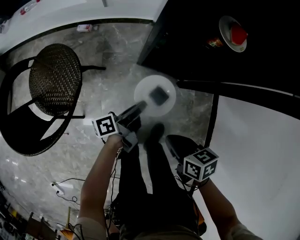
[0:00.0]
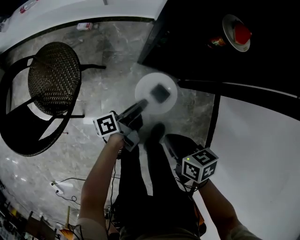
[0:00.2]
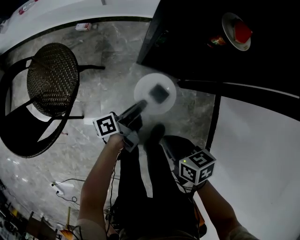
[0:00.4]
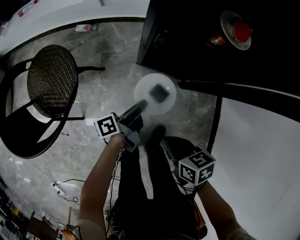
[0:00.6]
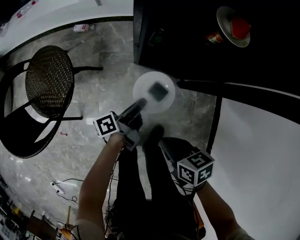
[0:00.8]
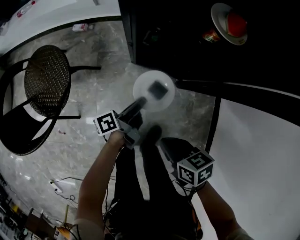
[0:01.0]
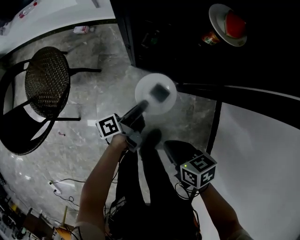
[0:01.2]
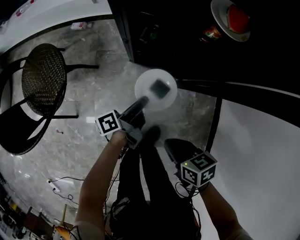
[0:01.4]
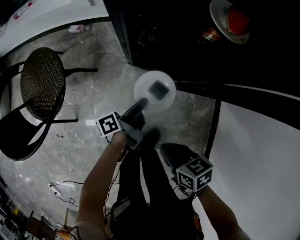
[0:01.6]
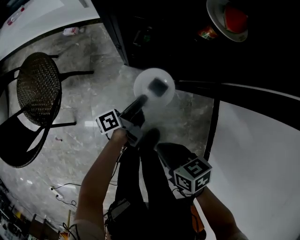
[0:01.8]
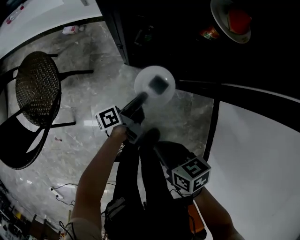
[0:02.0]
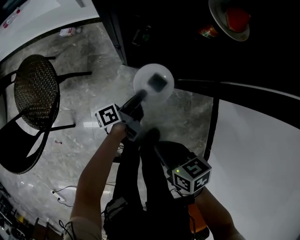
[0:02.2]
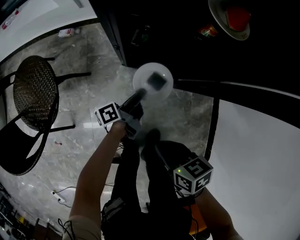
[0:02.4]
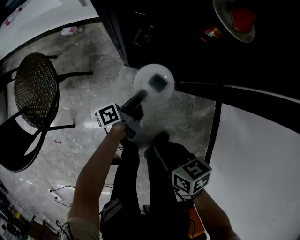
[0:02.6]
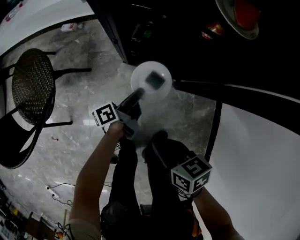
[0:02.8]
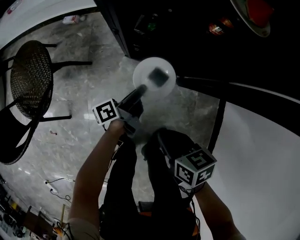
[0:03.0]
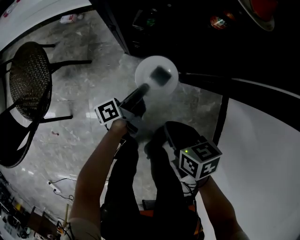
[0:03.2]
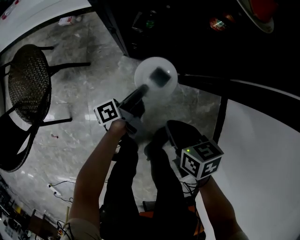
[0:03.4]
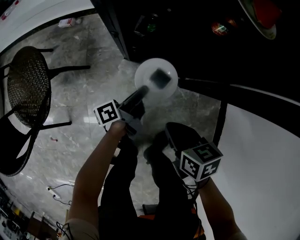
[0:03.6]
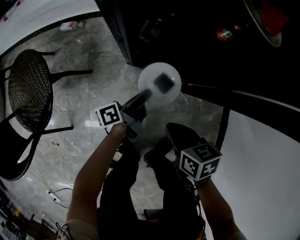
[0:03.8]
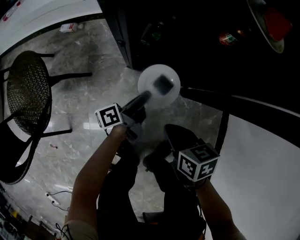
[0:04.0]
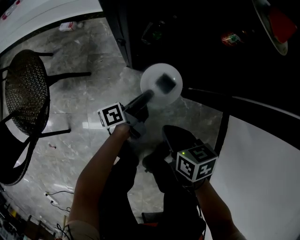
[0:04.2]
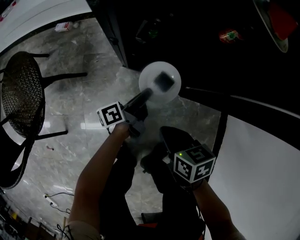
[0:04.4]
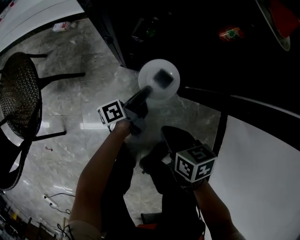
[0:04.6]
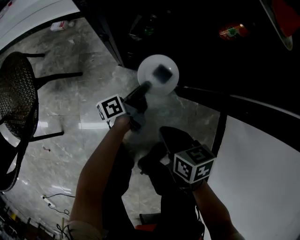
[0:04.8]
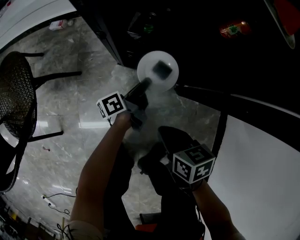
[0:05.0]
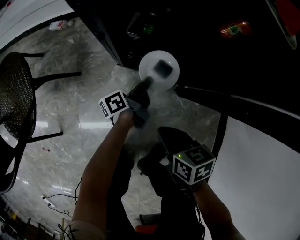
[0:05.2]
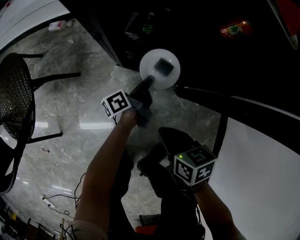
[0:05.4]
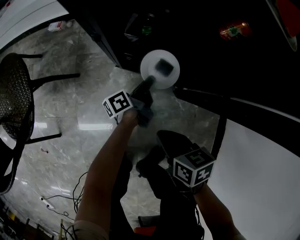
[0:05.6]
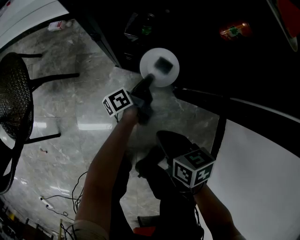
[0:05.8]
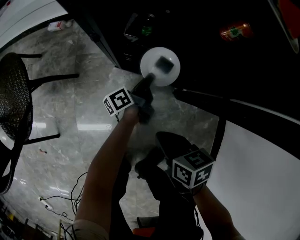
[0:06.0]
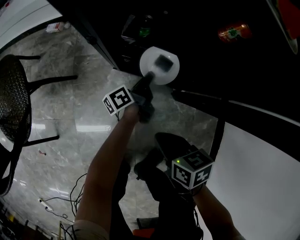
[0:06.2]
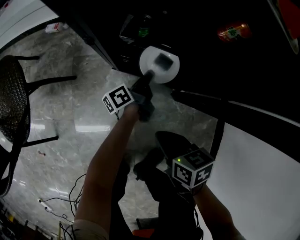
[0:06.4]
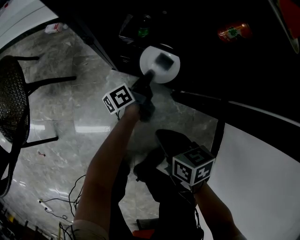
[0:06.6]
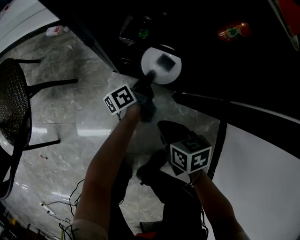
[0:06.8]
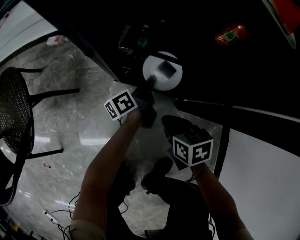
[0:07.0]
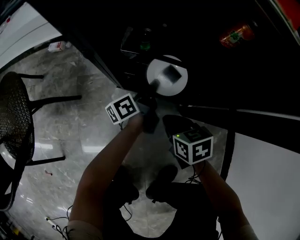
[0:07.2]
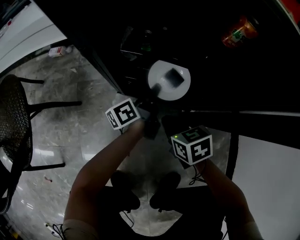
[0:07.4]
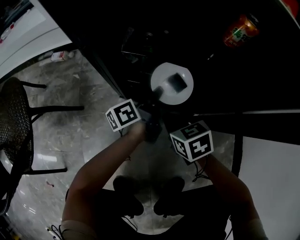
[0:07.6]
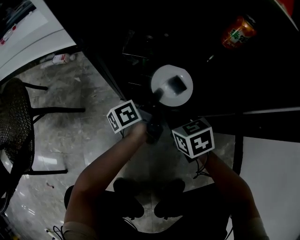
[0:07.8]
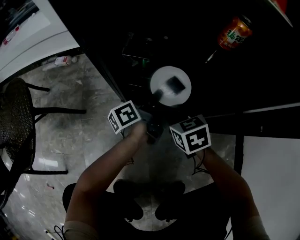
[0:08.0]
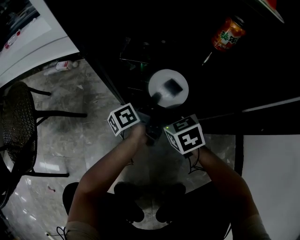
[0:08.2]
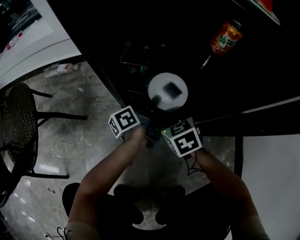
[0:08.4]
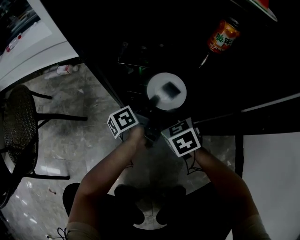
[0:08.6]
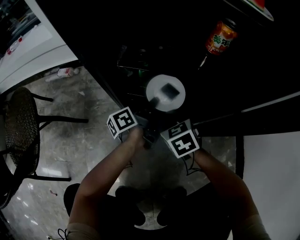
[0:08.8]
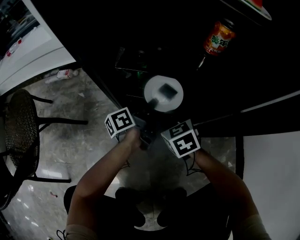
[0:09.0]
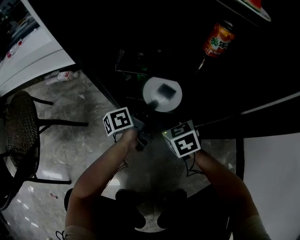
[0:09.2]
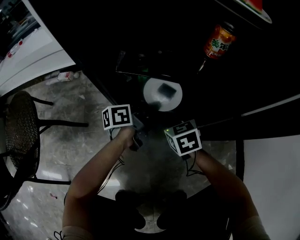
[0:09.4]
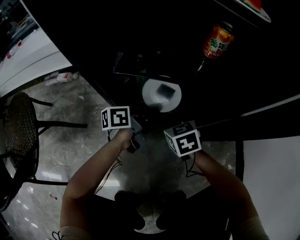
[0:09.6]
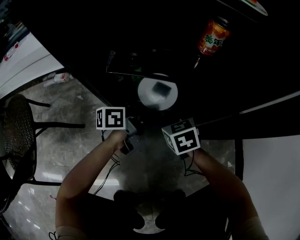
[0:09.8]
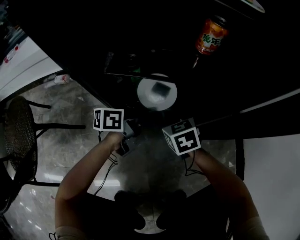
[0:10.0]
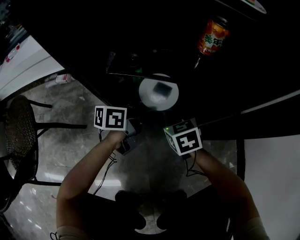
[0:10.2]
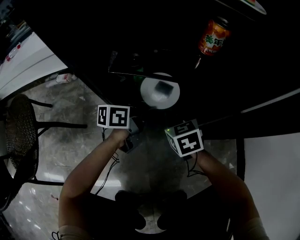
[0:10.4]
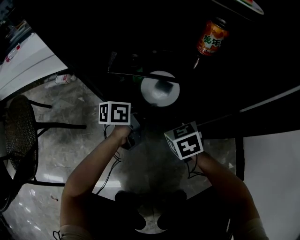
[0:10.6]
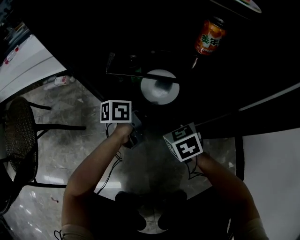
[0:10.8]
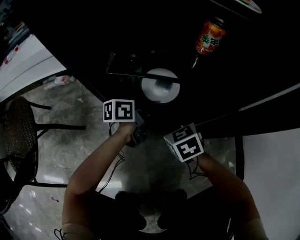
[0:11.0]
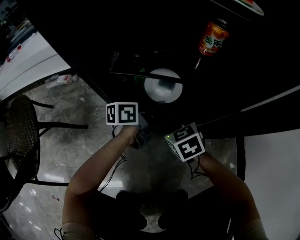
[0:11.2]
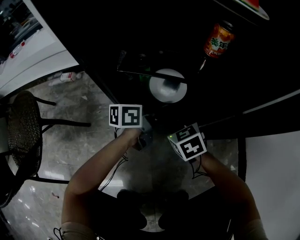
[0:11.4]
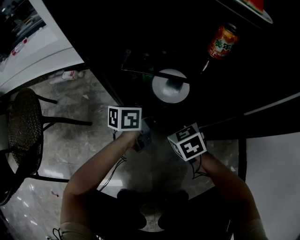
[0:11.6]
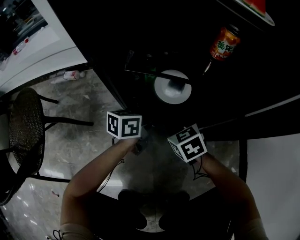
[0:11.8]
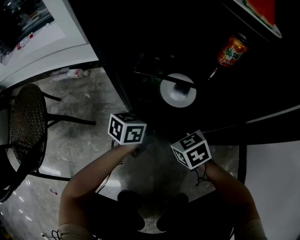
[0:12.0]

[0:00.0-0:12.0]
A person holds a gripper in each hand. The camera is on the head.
0:00.0 to 0:01.6: The right gripper moves downward, roughly 5 cm. Meanwhile the left gripper shifts approximately 10 cm to the right and downward.
0:01.6 to 0:03.0: The left gripper moves downward, about 5 cm, while the right gripper goes about 5 cm downward and forward.
0:03.0 to 0:04.4: The right gripper heads downward and forward, covering approximately 10 cm. The left gripper moves downward, some 5 cm.
0:04.4 to 0:06.0: The left gripper moves downward and forward, approximately 10 cm.
0:06.0 to 0:07.6: The right gripper shifts some 15 cm forward and downward, and turns by roughly 20 degrees.
0:07.6 to 0:09.0: There are only small adjustments of the grippers.
0:09.0 to 0:10.4: The left gripper changes its angle by about 40 degrees.
0:10.4 to 0:12.0: The left gripper swivels some 20 degrees; the right gripper travels backward by some 5 cm.

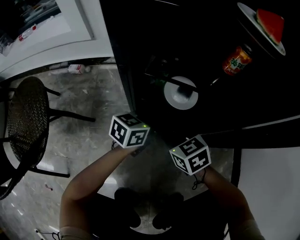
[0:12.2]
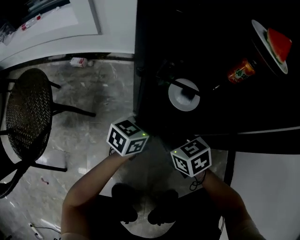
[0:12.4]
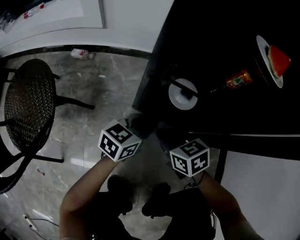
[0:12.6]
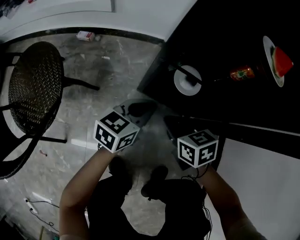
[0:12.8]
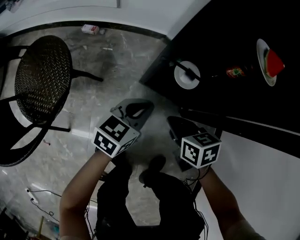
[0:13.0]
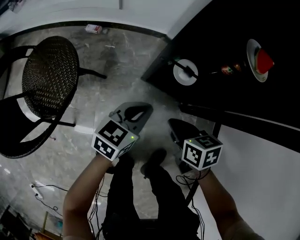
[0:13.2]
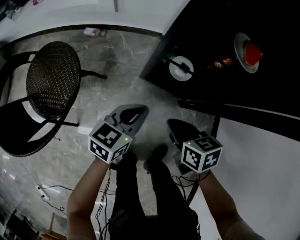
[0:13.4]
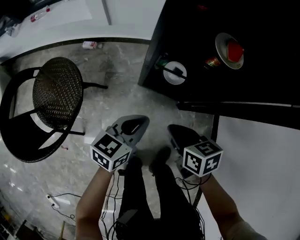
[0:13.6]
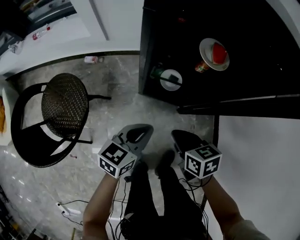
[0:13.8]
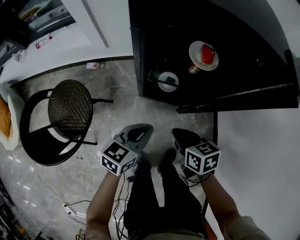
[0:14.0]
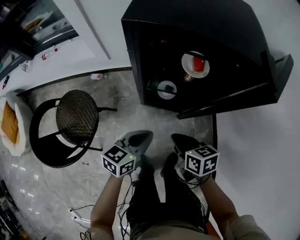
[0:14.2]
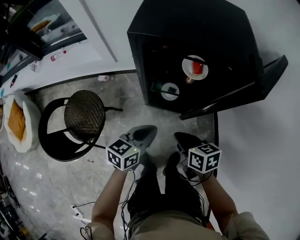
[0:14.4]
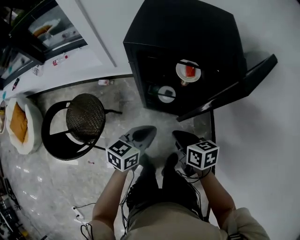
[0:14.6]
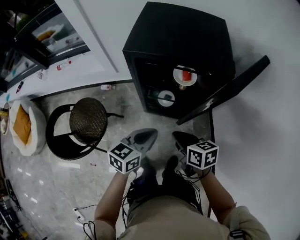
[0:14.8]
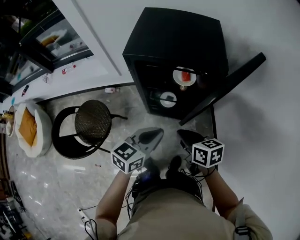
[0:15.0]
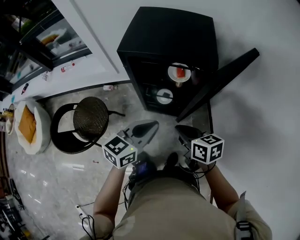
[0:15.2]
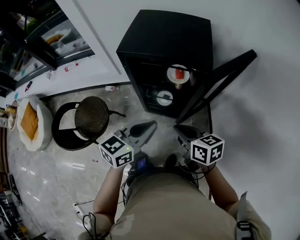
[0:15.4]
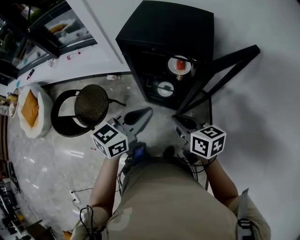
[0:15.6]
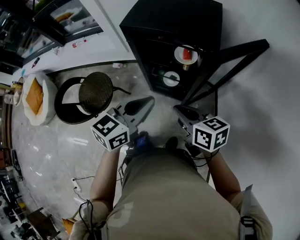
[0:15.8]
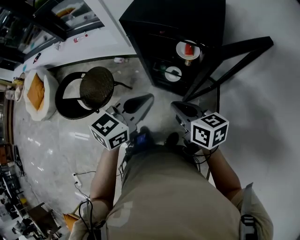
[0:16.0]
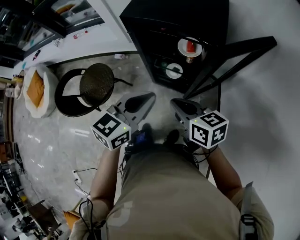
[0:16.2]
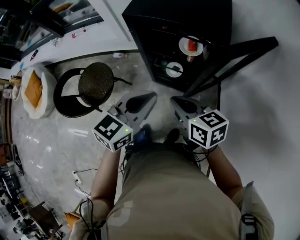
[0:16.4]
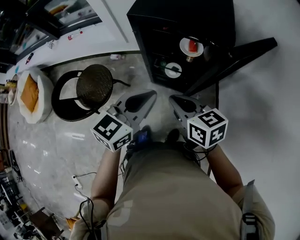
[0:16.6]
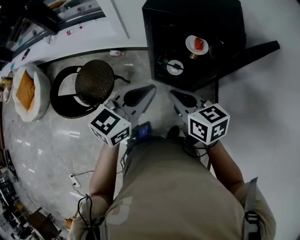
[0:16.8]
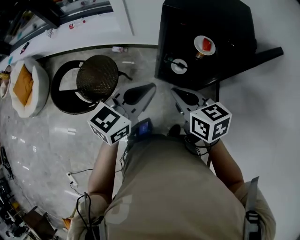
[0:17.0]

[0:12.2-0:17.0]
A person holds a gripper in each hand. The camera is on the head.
0:12.2 to 0:13.8: The left gripper goes roughly 35 cm upward and backward; the right gripper moves upward, roughly 30 cm, and rotates about 20 degrees.
0:13.8 to 0:15.4: Both grippers move upward, roughly 30 cm.
0:15.4 to 0:17.0: Both grippers move to the left, some 15 cm.

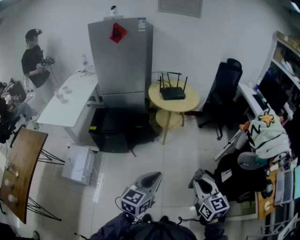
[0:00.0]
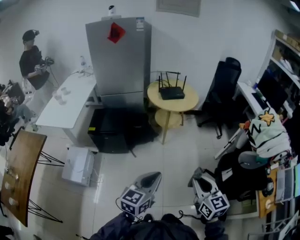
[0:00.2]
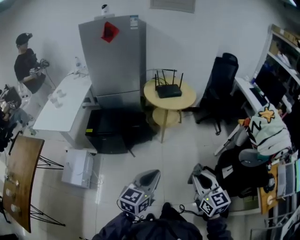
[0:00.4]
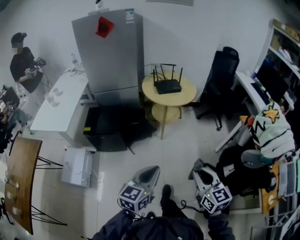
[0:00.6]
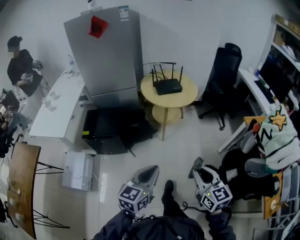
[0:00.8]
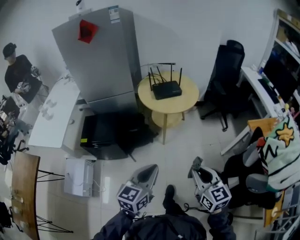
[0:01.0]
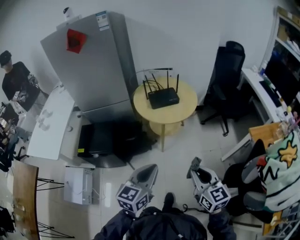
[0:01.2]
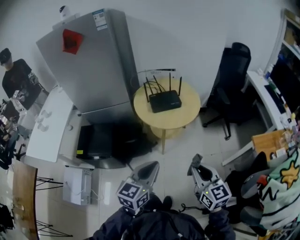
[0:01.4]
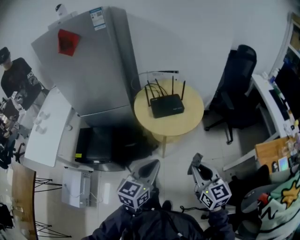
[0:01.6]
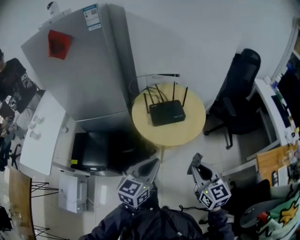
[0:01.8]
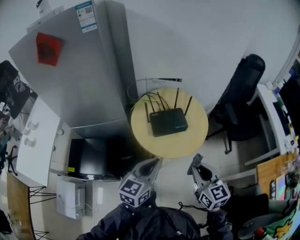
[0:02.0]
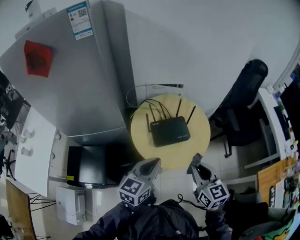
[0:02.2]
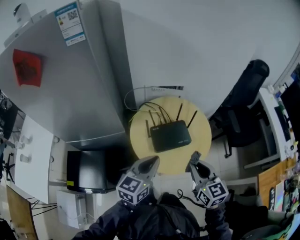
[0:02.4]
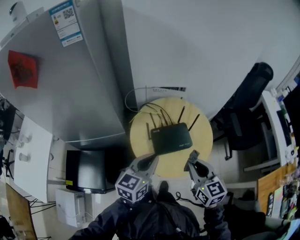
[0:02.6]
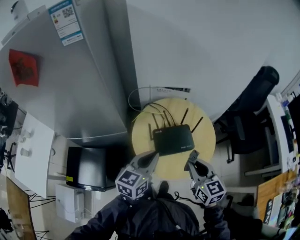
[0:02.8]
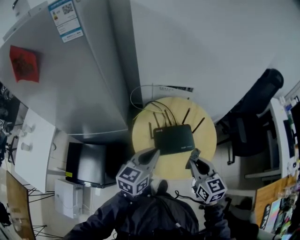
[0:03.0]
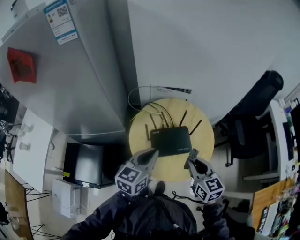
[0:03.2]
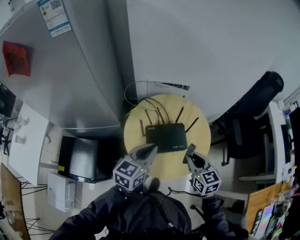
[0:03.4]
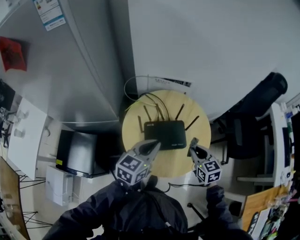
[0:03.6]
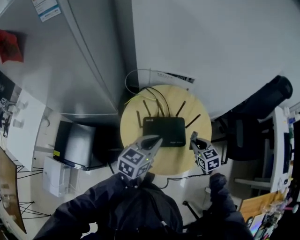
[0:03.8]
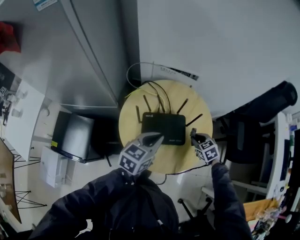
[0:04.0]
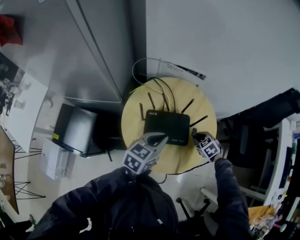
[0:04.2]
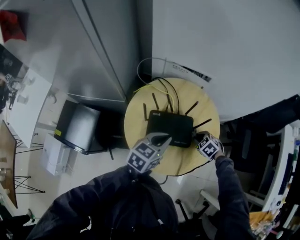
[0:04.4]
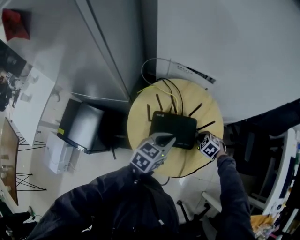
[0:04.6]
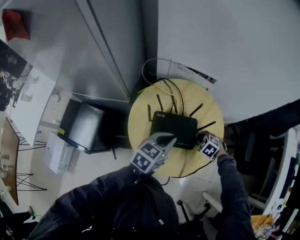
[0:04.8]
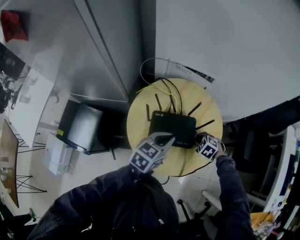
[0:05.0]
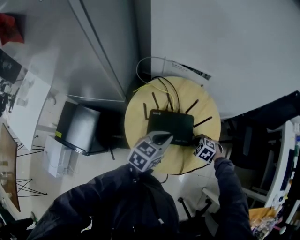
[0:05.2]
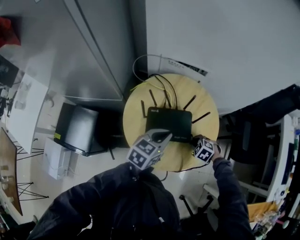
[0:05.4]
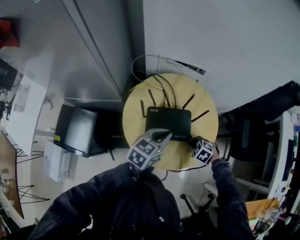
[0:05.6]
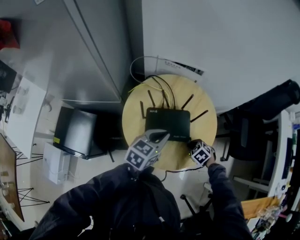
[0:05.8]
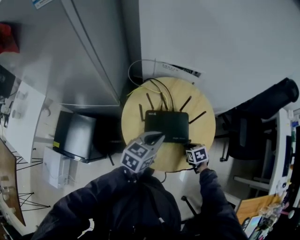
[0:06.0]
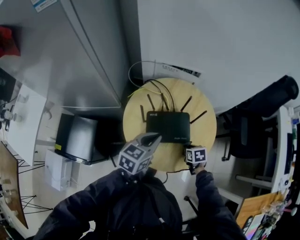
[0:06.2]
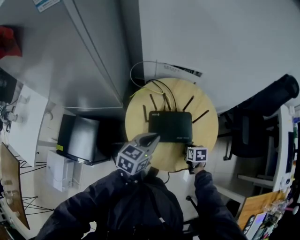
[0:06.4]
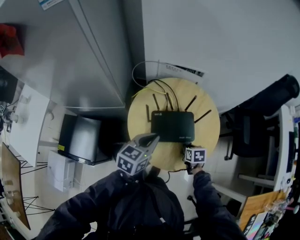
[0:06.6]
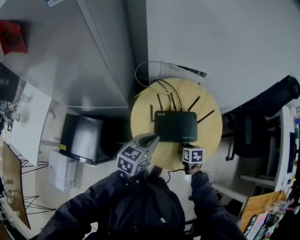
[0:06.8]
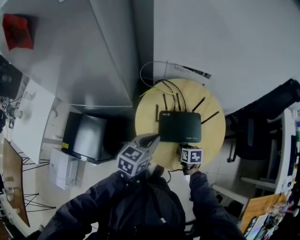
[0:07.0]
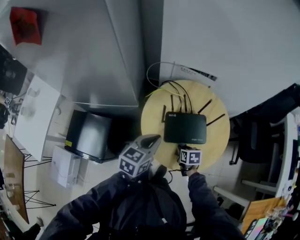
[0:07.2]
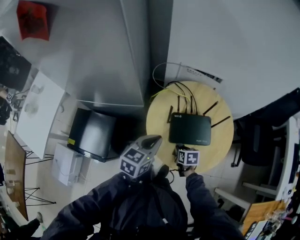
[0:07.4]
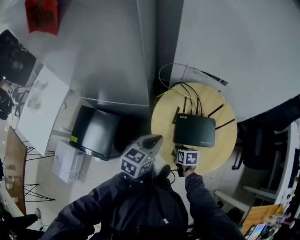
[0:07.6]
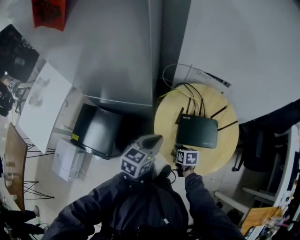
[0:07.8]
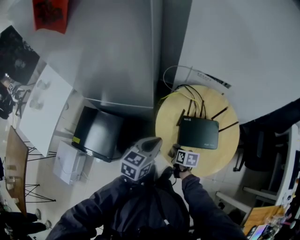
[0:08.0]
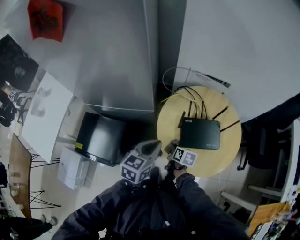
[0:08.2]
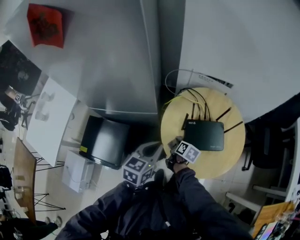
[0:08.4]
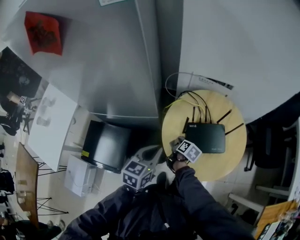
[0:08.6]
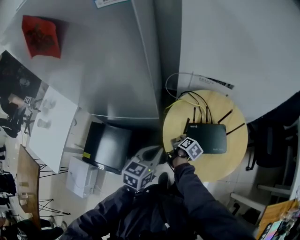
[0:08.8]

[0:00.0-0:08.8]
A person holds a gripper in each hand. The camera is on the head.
0:00.0 to 0:01.4: The two grippers travel together, forward, approximately 40 cm.
0:01.4 to 0:03.0: Both grippers are carried forward, about 50 cm.
0:03.0 to 0:04.4: The left gripper heads downward, to the right and forward, covering about 15 cm. Meanwhile the right gripper shifts roughly 35 cm downward and forward, and angles its fingers downward, by some 50 degrees.
0:04.4 to 0:05.8: The right gripper changes place by about 10 cm.
0:05.8 to 0:07.4: Both grippers travel together to the left, roughly 20 cm. The right gripper rotates around the line of its fingers by about 50 degrees, clockwise from behind.
0:07.4 to 0:08.8: The left gripper shifts approximately 10 cm to the left; the right gripper goes approximately 15 cm to the left and forward, and rolls clockwise, seen from behind, by roughly 50 degrees.
